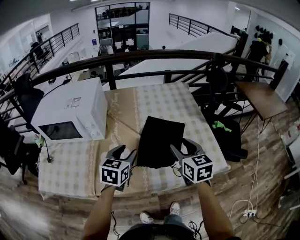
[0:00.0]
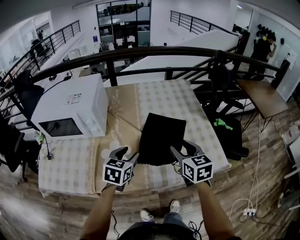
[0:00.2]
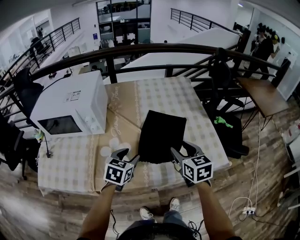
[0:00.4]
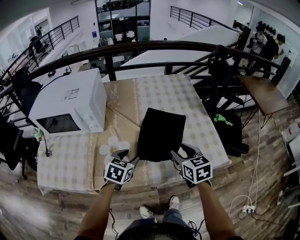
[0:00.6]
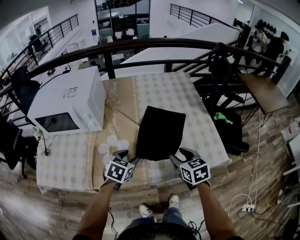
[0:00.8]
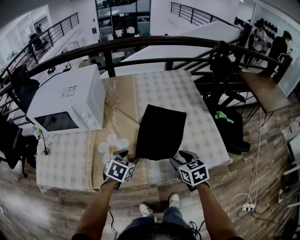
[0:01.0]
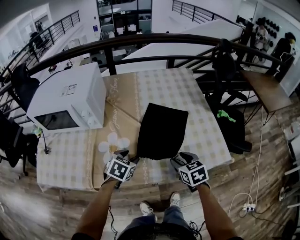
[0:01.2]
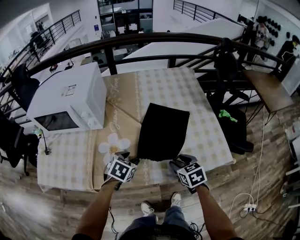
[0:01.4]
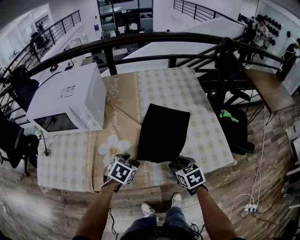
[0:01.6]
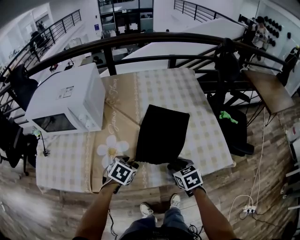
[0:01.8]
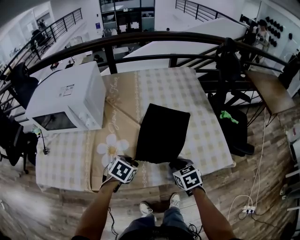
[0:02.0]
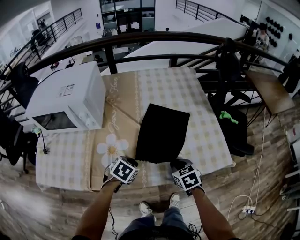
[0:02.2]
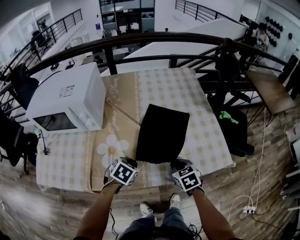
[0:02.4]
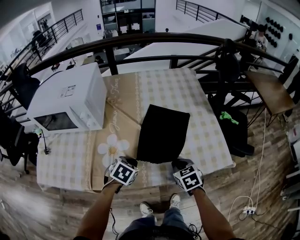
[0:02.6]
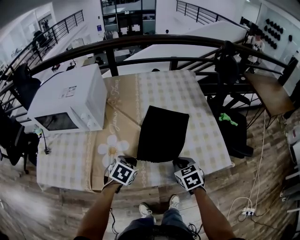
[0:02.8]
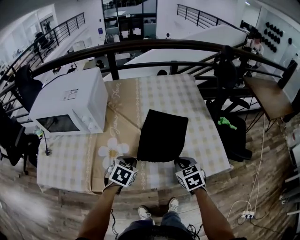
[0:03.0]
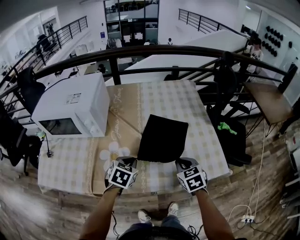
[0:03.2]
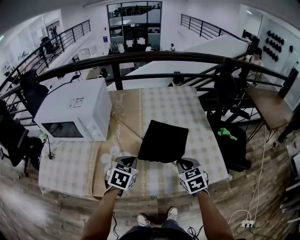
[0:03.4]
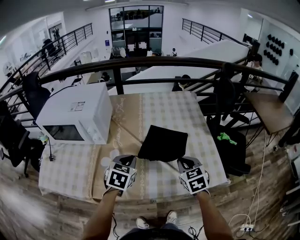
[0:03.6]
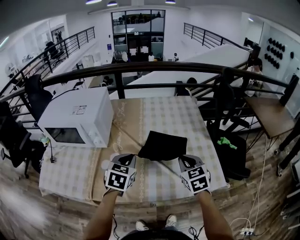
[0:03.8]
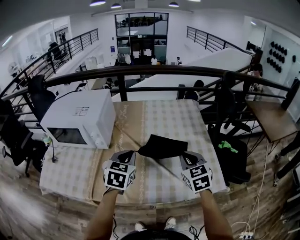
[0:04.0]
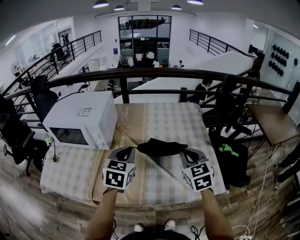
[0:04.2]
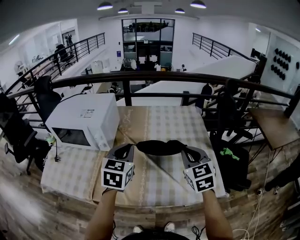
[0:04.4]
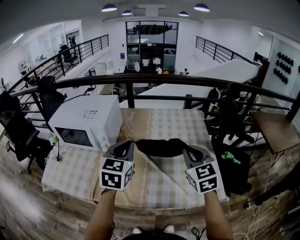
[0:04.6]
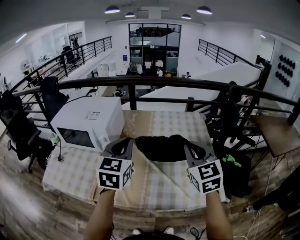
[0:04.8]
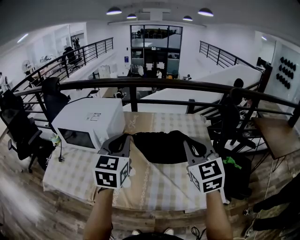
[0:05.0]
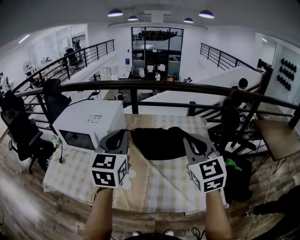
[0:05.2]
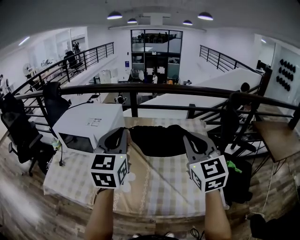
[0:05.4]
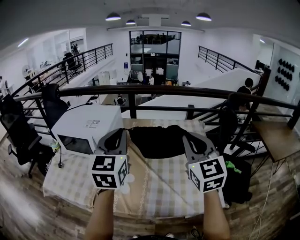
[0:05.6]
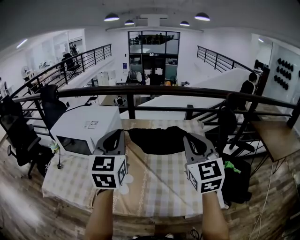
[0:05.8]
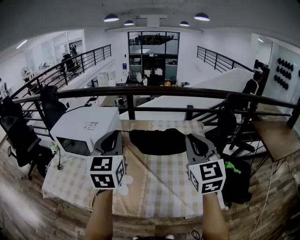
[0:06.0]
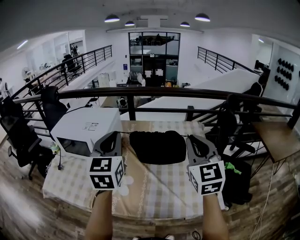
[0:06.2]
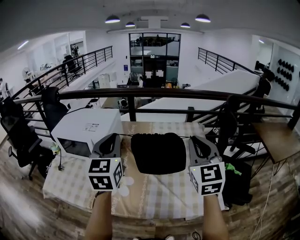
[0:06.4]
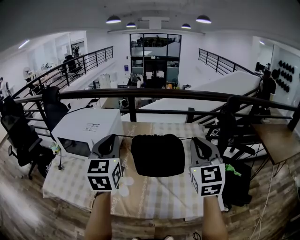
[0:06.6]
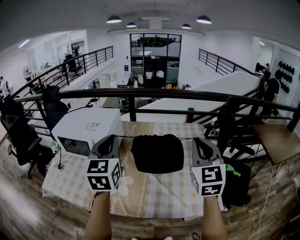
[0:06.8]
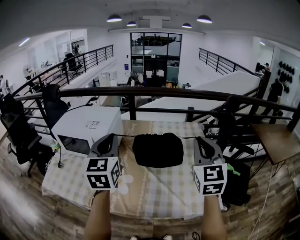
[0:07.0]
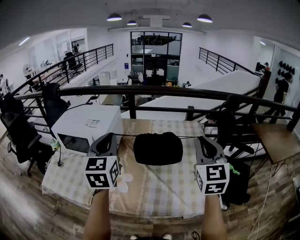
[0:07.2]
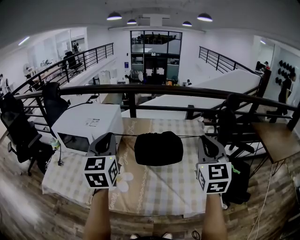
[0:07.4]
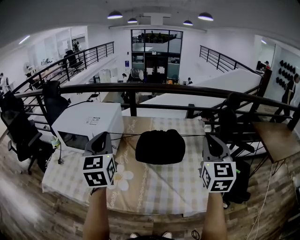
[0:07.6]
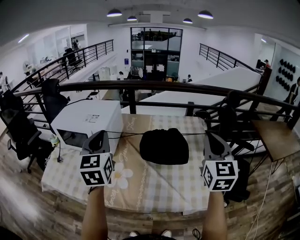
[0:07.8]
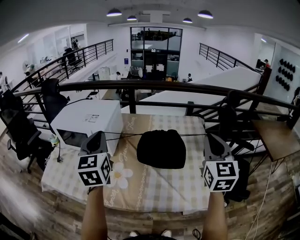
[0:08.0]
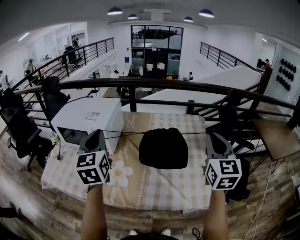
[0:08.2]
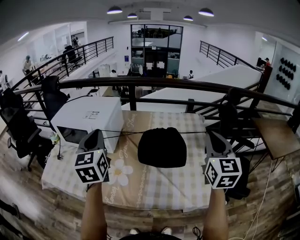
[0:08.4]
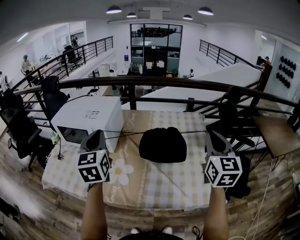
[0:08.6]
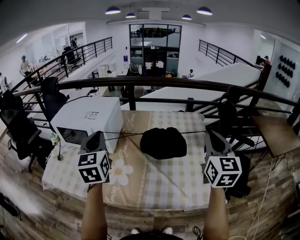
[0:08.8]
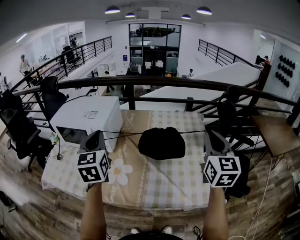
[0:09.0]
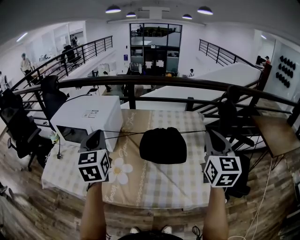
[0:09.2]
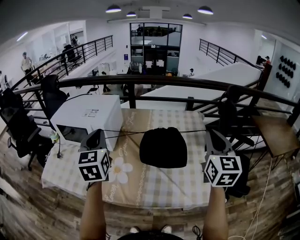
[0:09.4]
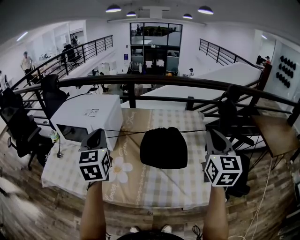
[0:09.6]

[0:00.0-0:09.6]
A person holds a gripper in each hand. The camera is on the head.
0:00.0 to 0:01.6: The two grippers go about 15 cm downward. The left gripper changes its angle by approximately 30 degrees. The right gripper swivels some 30 degrees.
0:01.6 to 0:03.2: Both grippers move upward, about 5 cm. The right gripper closes its fingers. Meanwhile the left gripper closes up.
0:03.2 to 0:04.8: The two grippers go some 25 cm upward. The left gripper points its fingers approximately 40 degrees further upward. The right gripper tips its fingers upward by some 30 degrees.
0:04.8 to 0:06.4: The two grippers go roughly 10 cm upward.
0:06.4 to 0:08.0: The right gripper heads to the right, covering about 5 cm. Meanwhile the left gripper moves to the left, roughly 5 cm.
0:08.0 to 0:09.6: The grippers stay close to where they were, moving slightly.

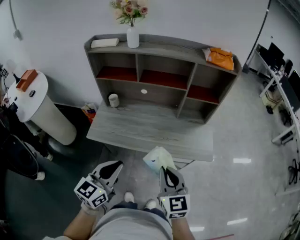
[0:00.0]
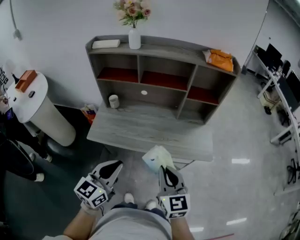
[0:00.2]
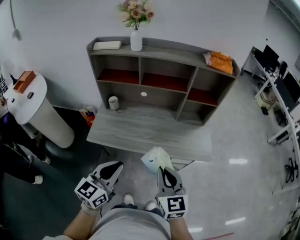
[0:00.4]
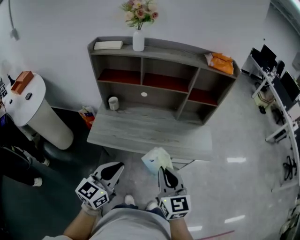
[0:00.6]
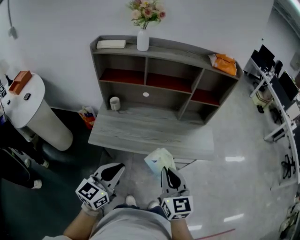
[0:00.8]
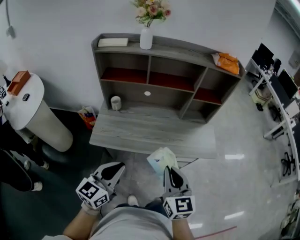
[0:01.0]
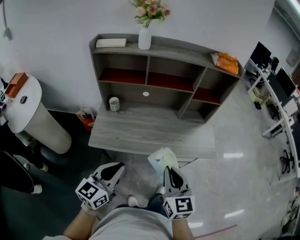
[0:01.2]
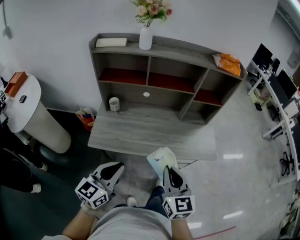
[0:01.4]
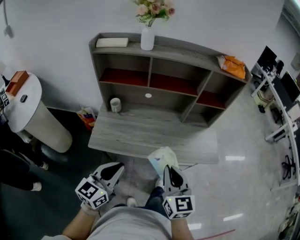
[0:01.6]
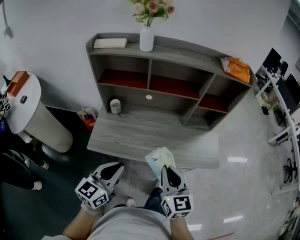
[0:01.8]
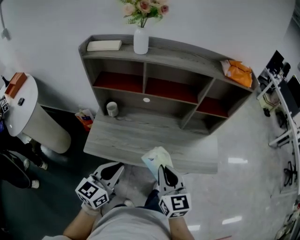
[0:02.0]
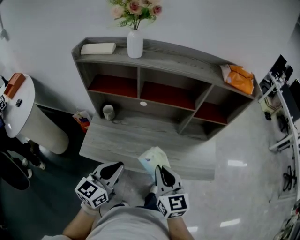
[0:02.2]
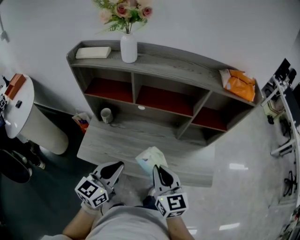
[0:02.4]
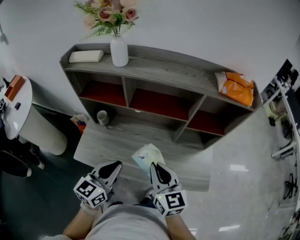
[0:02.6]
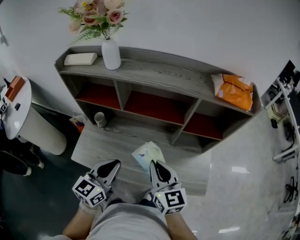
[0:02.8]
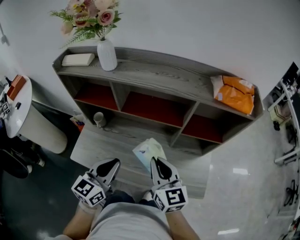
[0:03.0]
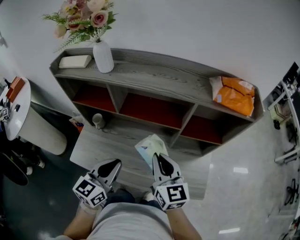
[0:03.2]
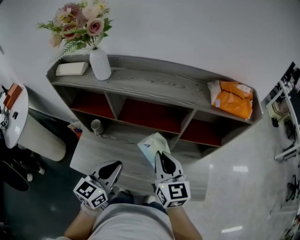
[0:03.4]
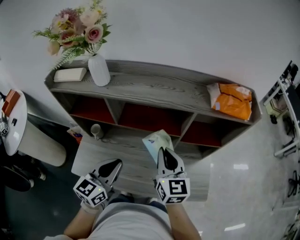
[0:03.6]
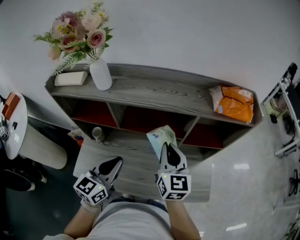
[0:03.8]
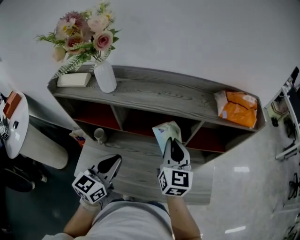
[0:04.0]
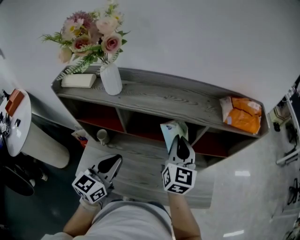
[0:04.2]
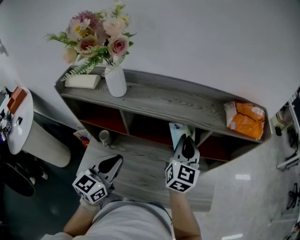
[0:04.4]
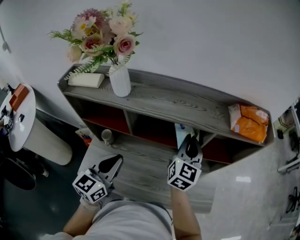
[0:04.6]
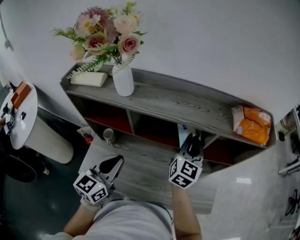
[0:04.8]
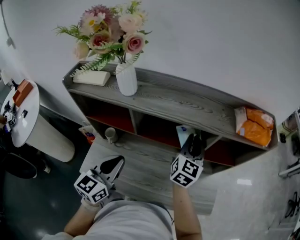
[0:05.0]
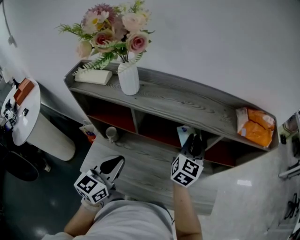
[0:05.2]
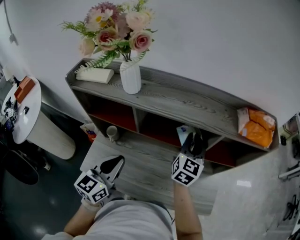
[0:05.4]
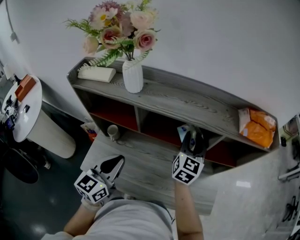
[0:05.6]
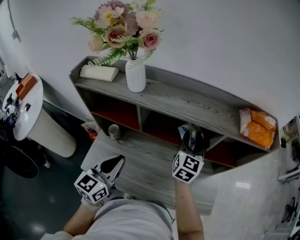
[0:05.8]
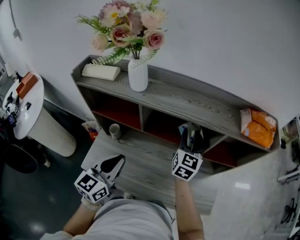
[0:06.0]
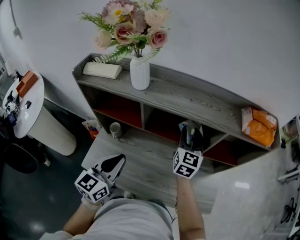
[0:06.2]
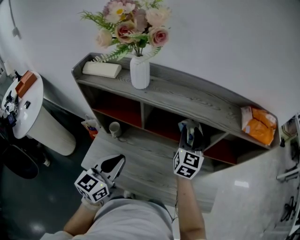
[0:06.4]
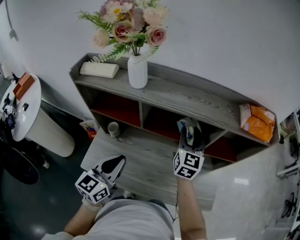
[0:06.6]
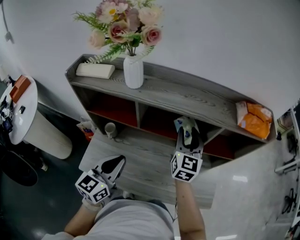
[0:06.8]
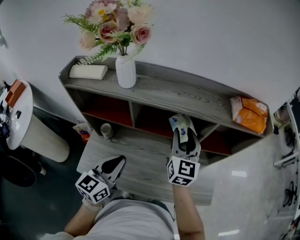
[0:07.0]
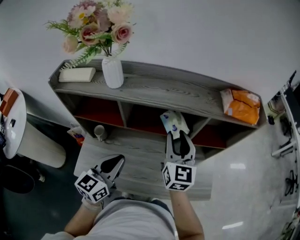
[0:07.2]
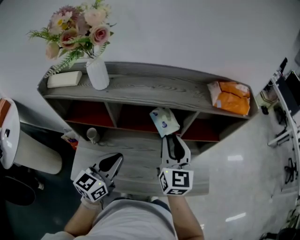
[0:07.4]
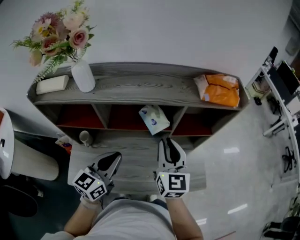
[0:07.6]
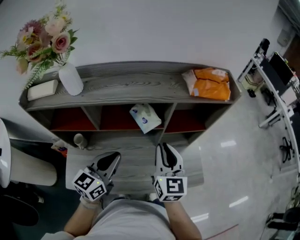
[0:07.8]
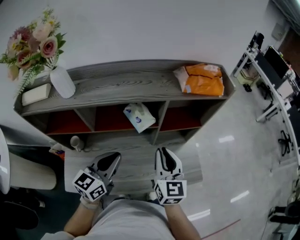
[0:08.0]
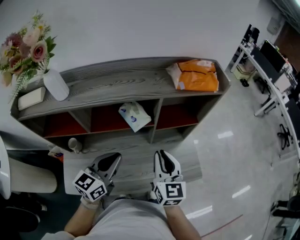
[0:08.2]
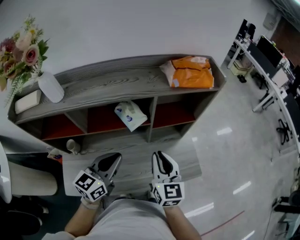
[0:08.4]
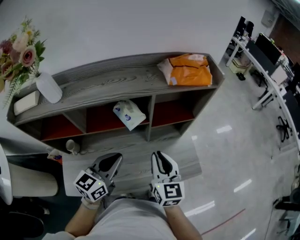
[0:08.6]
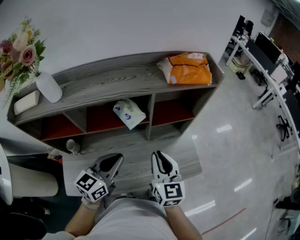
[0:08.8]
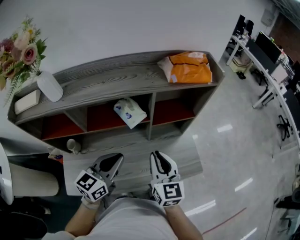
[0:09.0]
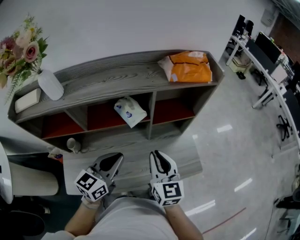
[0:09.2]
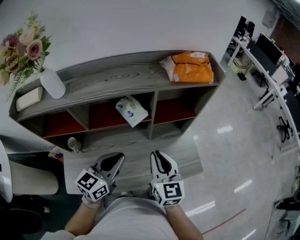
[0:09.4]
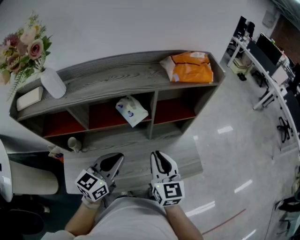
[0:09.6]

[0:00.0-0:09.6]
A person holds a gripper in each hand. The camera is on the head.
0:00.0 to 0:01.6: The two grippers go roughly 10 cm to the left.
0:01.6 to 0:03.2: The left gripper heads forward and to the right, covering roughly 30 cm. The right gripper is displaced forward by roughly 30 cm.
0:03.2 to 0:04.8: The left gripper travels to the left and forward by about 10 cm; the right gripper heads forward, covering approximately 20 cm, and rotates roughly 30 degrees.
0:04.8 to 0:06.4: The right gripper travels to the left by some 5 cm, and opens.
0:06.4 to 0:08.0: The left gripper heads to the right and forward, covering roughly 15 cm, and changes its angle by some 30 degrees; the right gripper goes some 20 cm backward and to the right, and closes its fingers.
0:08.0 to 0:09.6: The grippers make only small movements.

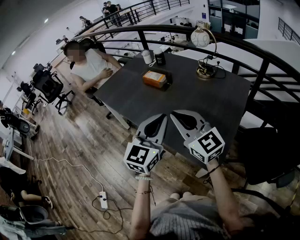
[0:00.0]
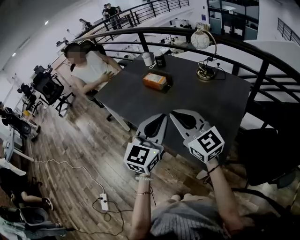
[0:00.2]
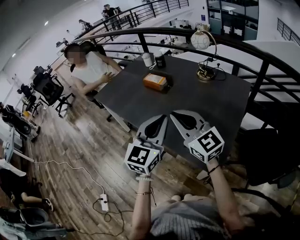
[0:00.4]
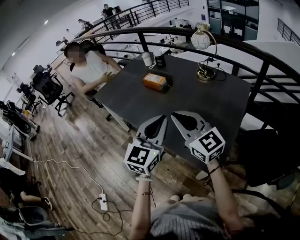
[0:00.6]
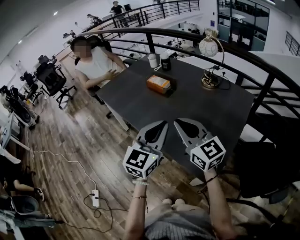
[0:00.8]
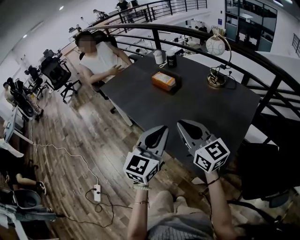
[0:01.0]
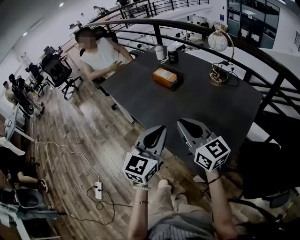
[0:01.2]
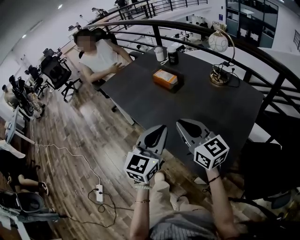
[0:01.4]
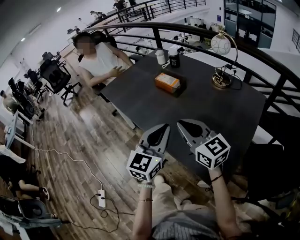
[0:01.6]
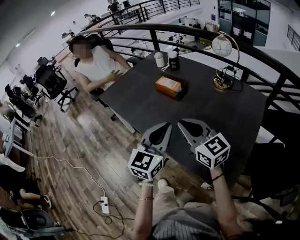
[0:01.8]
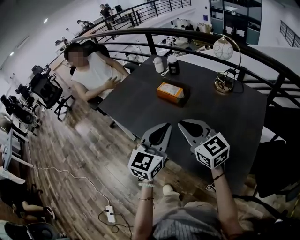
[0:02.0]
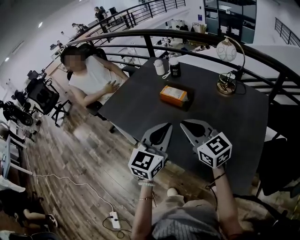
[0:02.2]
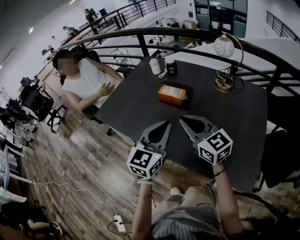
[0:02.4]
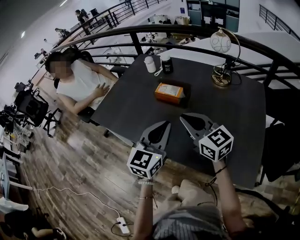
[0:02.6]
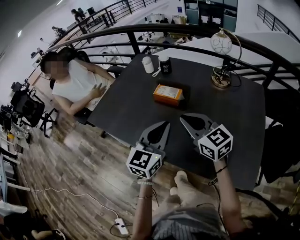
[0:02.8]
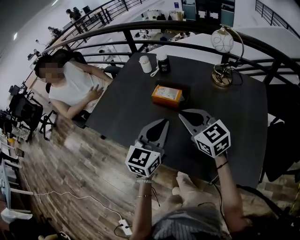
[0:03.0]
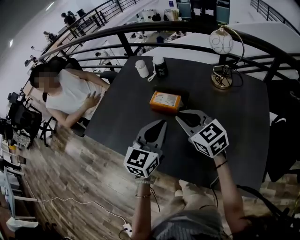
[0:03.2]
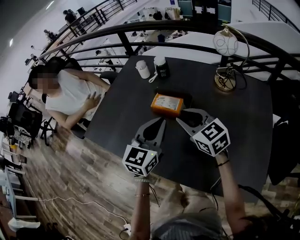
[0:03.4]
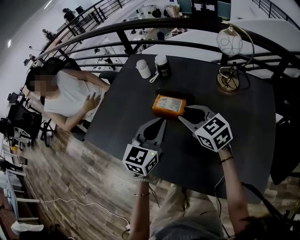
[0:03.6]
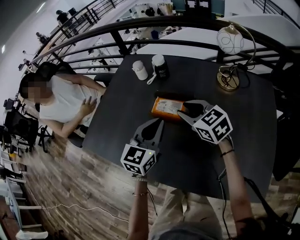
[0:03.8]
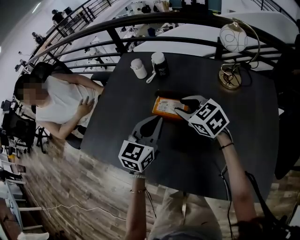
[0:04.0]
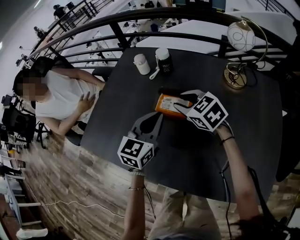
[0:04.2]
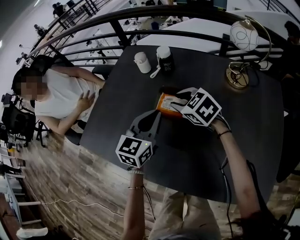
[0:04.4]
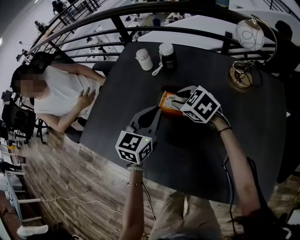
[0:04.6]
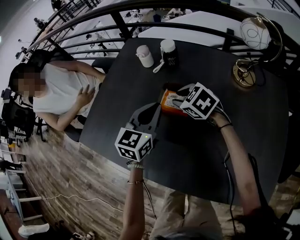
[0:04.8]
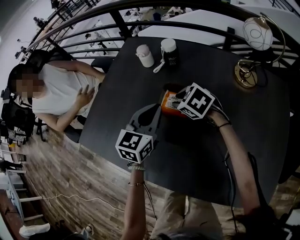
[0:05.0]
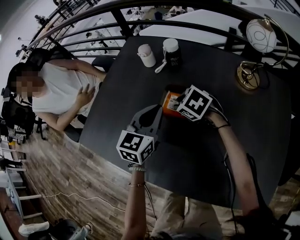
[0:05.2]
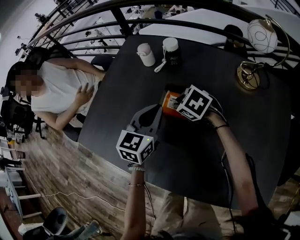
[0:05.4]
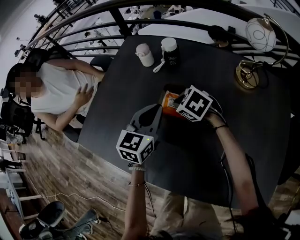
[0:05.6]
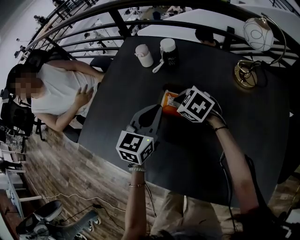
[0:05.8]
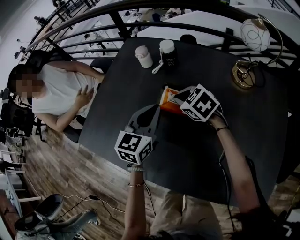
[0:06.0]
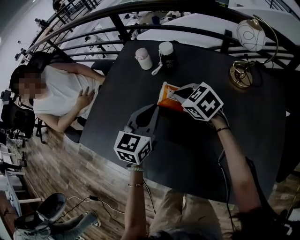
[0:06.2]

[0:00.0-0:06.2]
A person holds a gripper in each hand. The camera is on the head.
0:00.0 to 0:01.6: The two grippers go roughly 5 cm forward.
0:01.6 to 0:03.2: The left gripper is displaced forward and to the left by roughly 25 cm, and swivels approximately 20 degrees, while the right gripper shifts about 25 cm forward, and changes its angle by approximately 20 degrees.
0:03.2 to 0:04.6: The grippers both shift forward and downward by approximately 20 cm. The right gripper rotates approximately 30 degrees, and opens.
0:04.6 to 0:06.2: The right gripper closes up.
